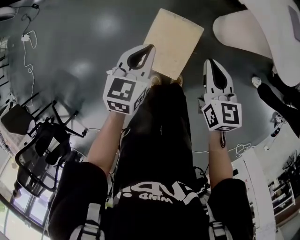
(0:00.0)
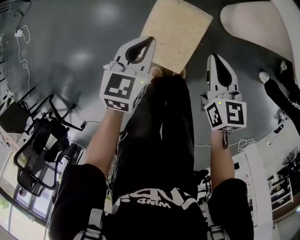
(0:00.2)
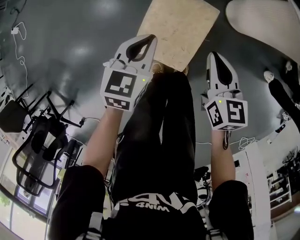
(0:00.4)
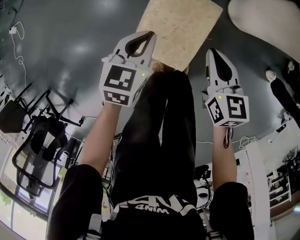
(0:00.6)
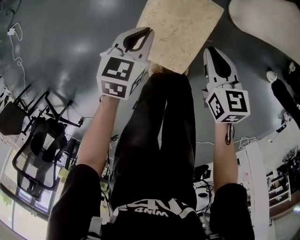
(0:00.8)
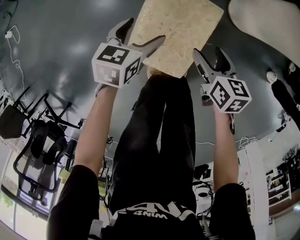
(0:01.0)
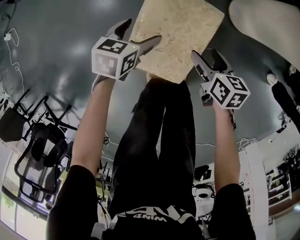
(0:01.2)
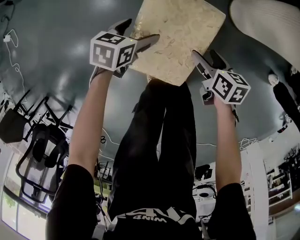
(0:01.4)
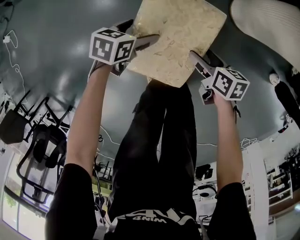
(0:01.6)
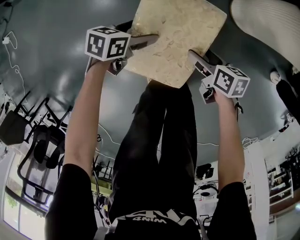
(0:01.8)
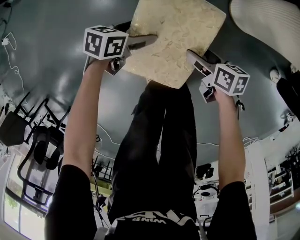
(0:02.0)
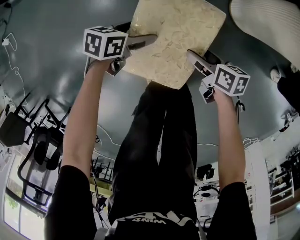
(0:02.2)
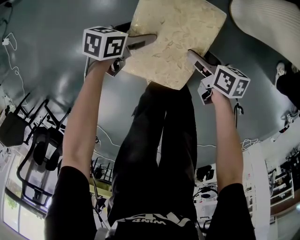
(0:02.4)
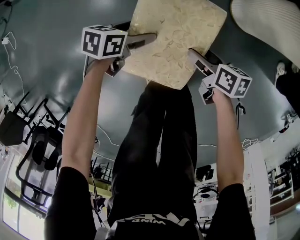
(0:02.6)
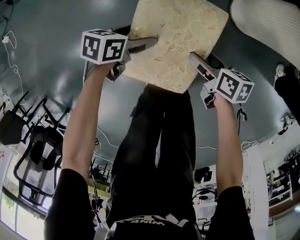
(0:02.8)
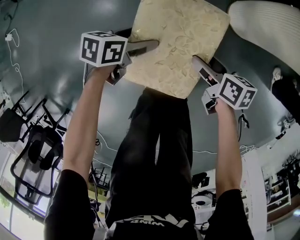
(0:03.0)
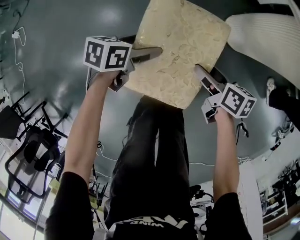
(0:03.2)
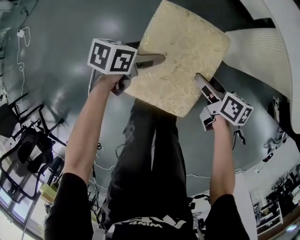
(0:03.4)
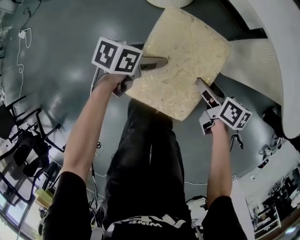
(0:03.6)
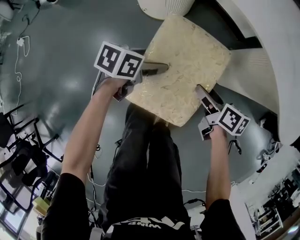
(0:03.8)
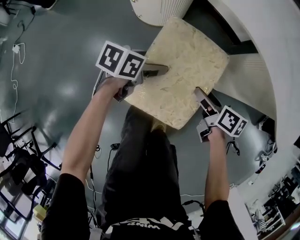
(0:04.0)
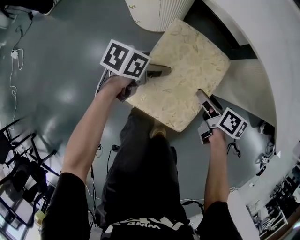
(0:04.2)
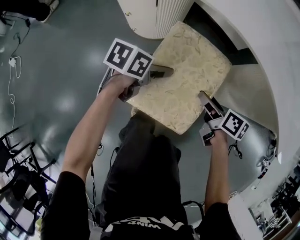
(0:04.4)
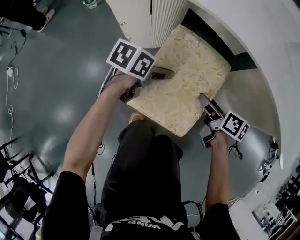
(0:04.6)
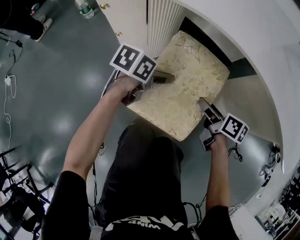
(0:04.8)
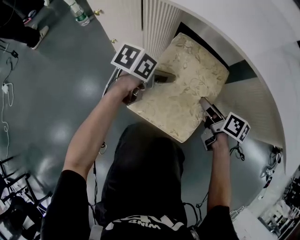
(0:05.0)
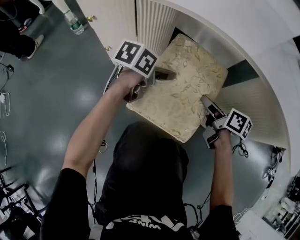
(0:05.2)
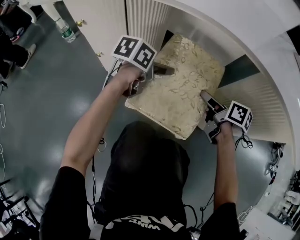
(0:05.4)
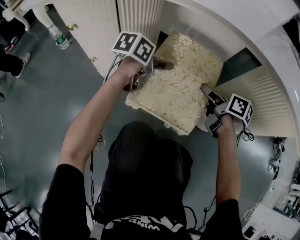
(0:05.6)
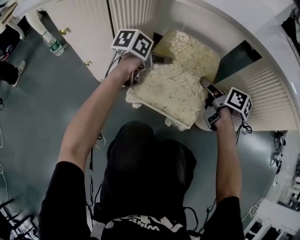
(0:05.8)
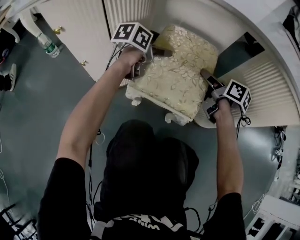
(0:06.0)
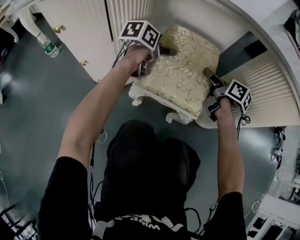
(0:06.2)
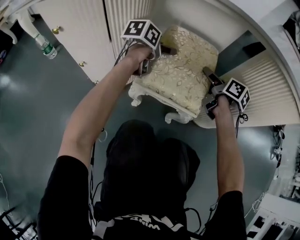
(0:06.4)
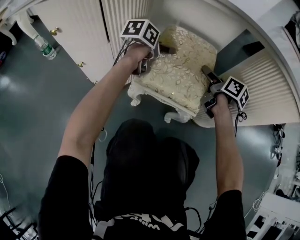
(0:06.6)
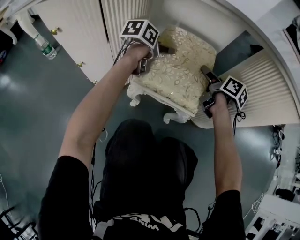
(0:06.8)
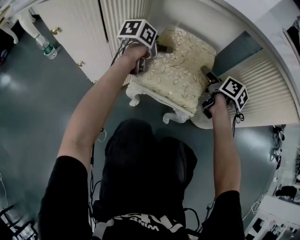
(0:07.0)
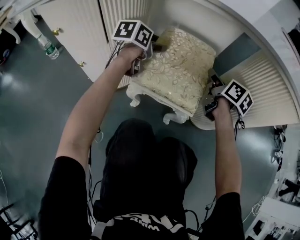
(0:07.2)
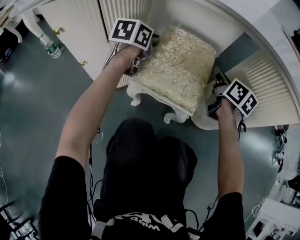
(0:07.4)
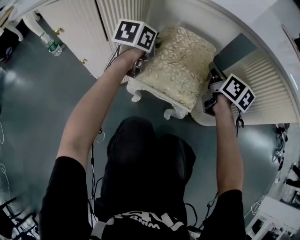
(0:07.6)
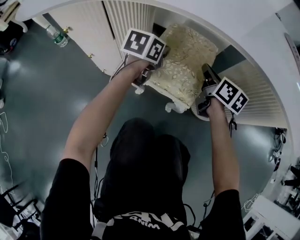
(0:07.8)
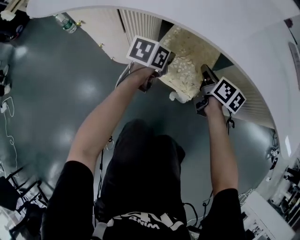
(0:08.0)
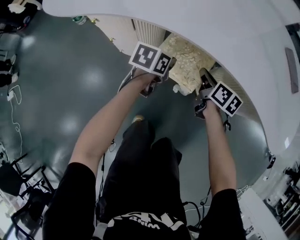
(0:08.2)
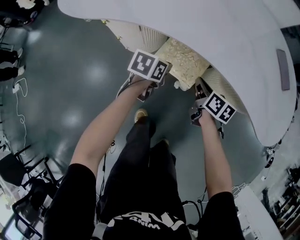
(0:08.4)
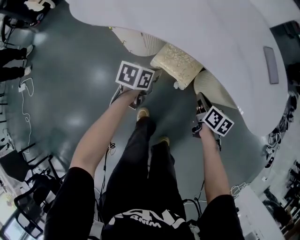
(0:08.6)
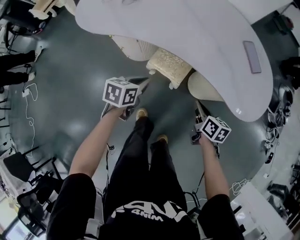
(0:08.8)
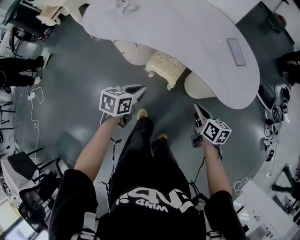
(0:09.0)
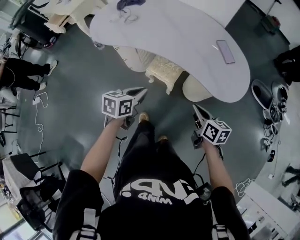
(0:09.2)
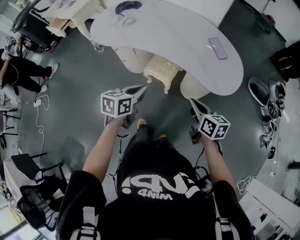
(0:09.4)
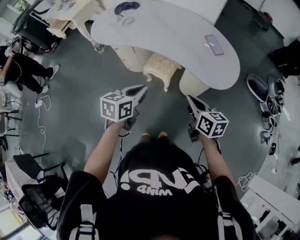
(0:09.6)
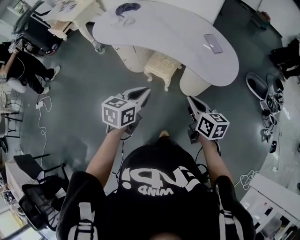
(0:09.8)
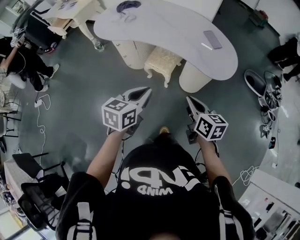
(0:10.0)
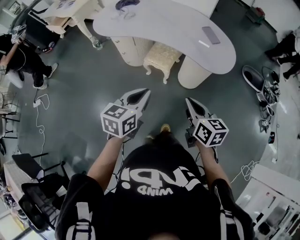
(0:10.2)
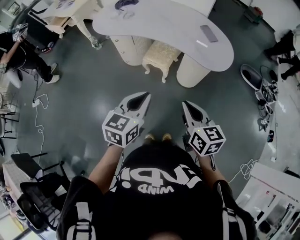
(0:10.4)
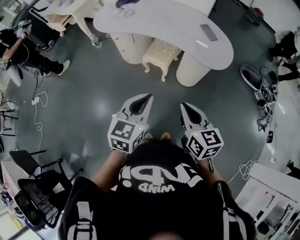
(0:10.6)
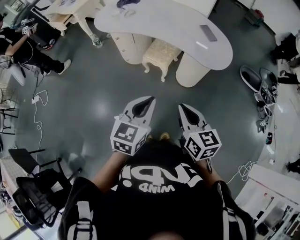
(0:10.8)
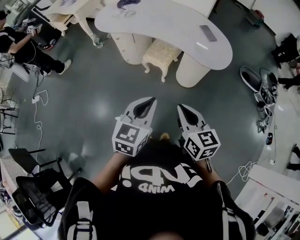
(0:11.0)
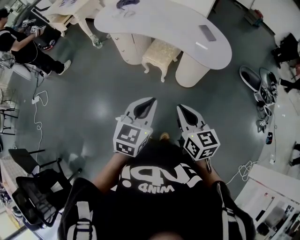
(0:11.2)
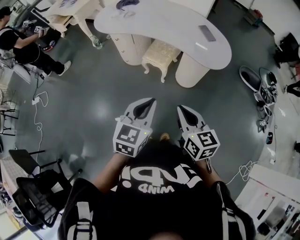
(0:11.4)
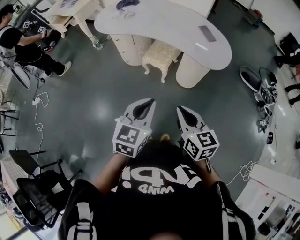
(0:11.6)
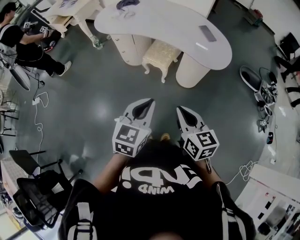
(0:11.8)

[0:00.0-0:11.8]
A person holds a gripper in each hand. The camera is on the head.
0:00.0 to 0:01.4: Both grippers travel together downward, roughly 35 cm. The right gripper changes its angle by approximately 40 degrees, and opens its fingers. The left gripper swivels some 30 degrees, and opens its fingers.
0:01.4 to 0:03.0: The grippers move only a little.
0:03.0 to 0:04.4: The left gripper changes place by approximately 30 cm. Meanwhile the right gripper changes place by some 25 cm.
0:04.4 to 0:06.0: The right gripper rotates roughly 20 degrees.
0:06.0 to 0:07.4: Both grippers move upward, about 5 cm. The right gripper rotates roughly 30 degrees, and closes up, while the left gripper closes its fingers.
0:07.4 to 0:08.8: Both grippers move backward and upward, approximately 40 cm. The right gripper swivels about 30 degrees.
0:08.8 to 0:10.4: Both grippers travel together backward and upward, approximately 50 cm. The left gripper swivels some 30 degrees, while the right gripper rotates roughly 30 degrees.
0:10.4 to 0:11.8: The left gripper ends up about 5 cm from where it was.

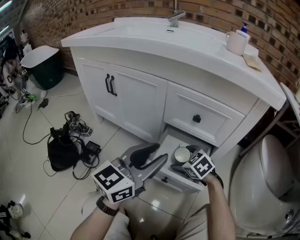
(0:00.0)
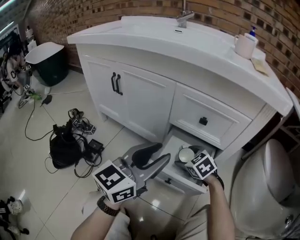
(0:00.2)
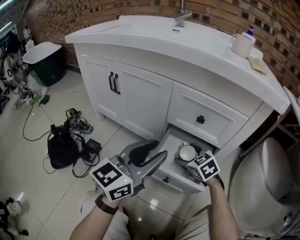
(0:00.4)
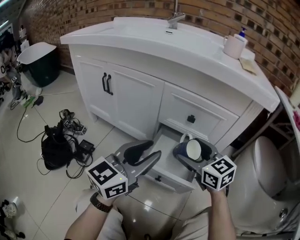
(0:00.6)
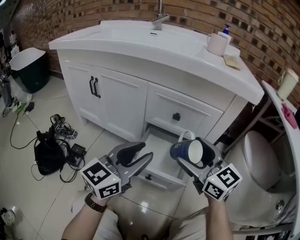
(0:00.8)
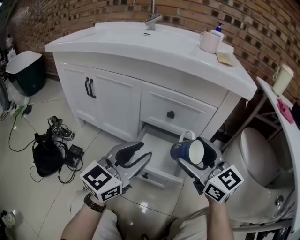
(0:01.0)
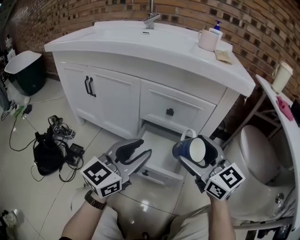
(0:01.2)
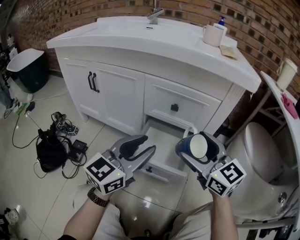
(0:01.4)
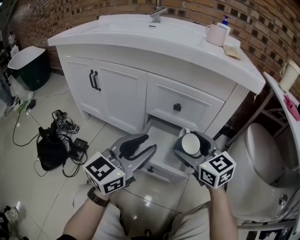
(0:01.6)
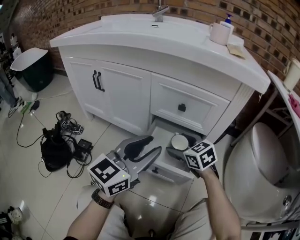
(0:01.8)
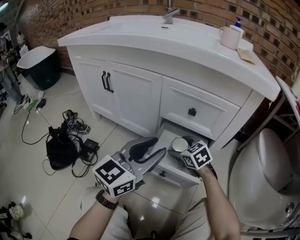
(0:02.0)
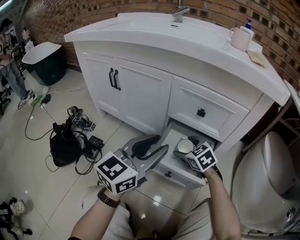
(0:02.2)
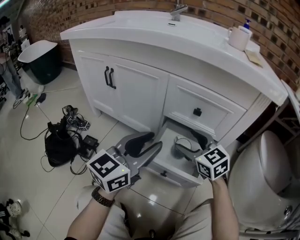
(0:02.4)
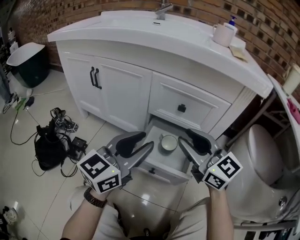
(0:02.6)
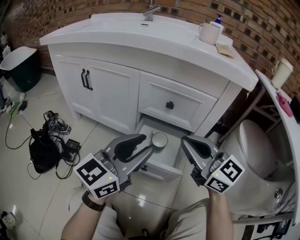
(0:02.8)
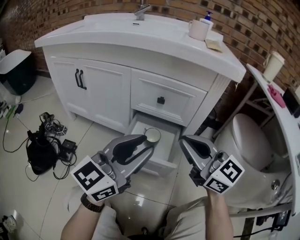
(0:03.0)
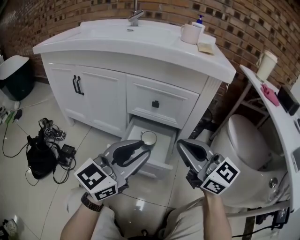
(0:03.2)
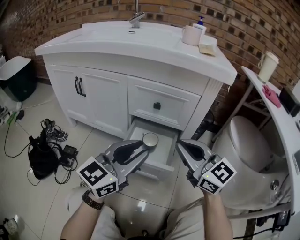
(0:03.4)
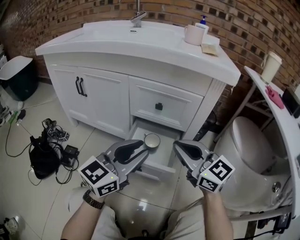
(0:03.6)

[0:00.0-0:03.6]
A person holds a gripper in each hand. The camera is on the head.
0:00.0 to 0:01.8: The right gripper travels upward and back again, roughly 25 cm each way.
0:01.8 to 0:03.6: The right gripper travels upward and backward by about 20 cm, tilts its fingers some 30 degrees upward, and closes.

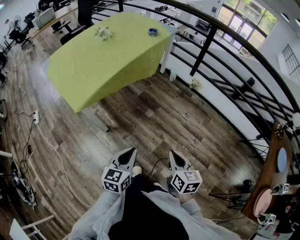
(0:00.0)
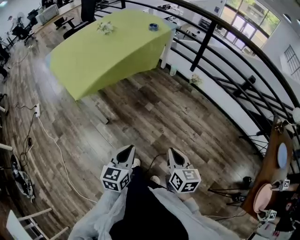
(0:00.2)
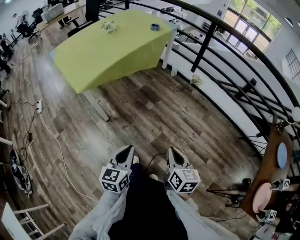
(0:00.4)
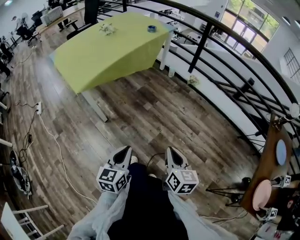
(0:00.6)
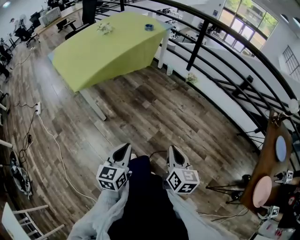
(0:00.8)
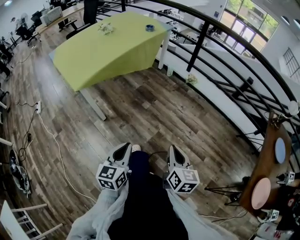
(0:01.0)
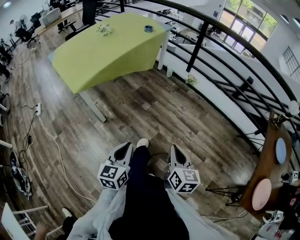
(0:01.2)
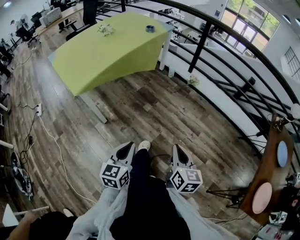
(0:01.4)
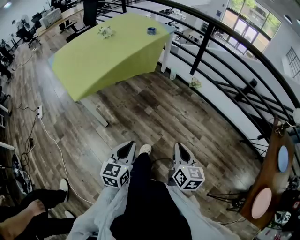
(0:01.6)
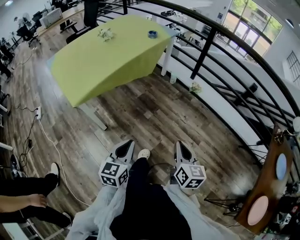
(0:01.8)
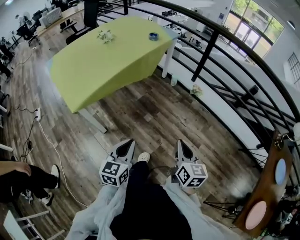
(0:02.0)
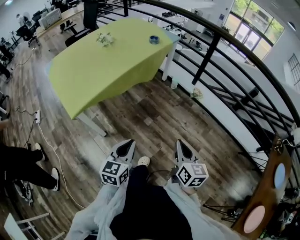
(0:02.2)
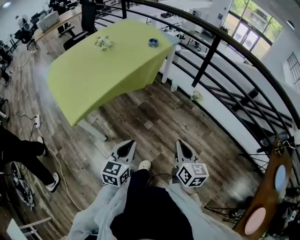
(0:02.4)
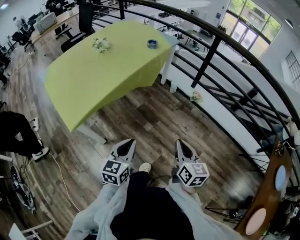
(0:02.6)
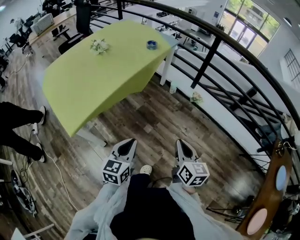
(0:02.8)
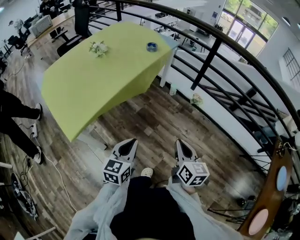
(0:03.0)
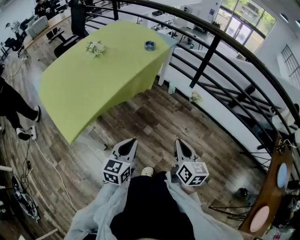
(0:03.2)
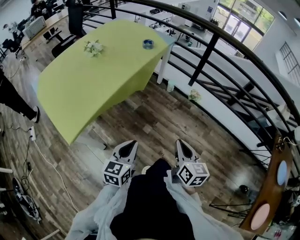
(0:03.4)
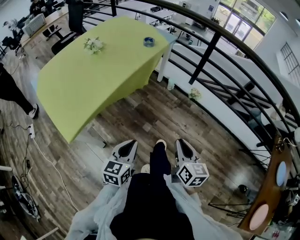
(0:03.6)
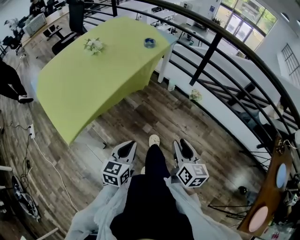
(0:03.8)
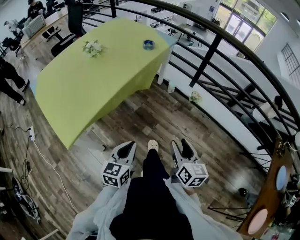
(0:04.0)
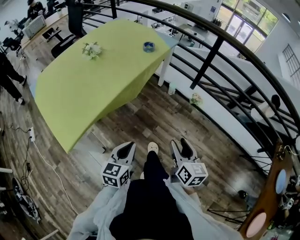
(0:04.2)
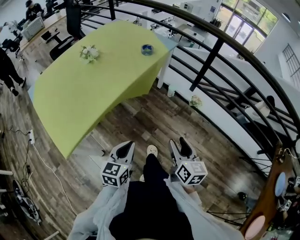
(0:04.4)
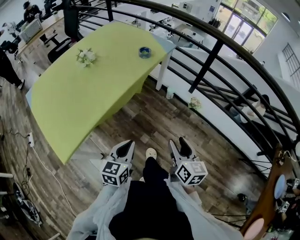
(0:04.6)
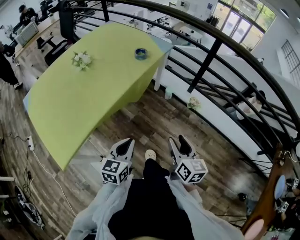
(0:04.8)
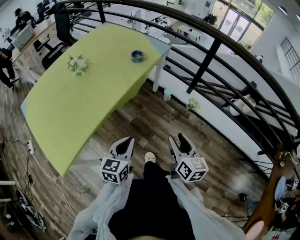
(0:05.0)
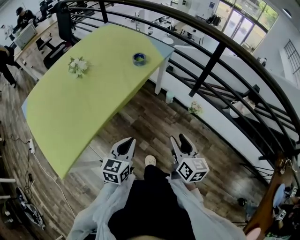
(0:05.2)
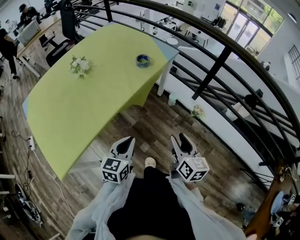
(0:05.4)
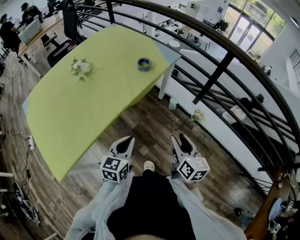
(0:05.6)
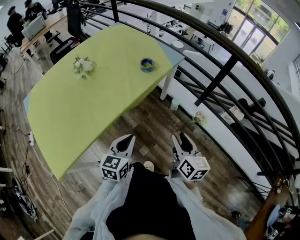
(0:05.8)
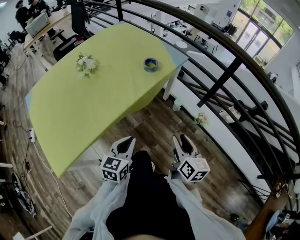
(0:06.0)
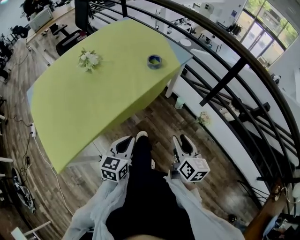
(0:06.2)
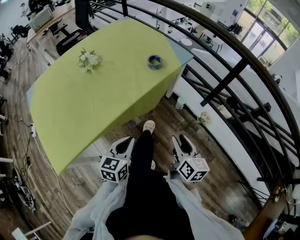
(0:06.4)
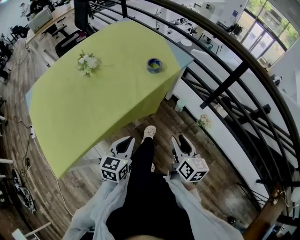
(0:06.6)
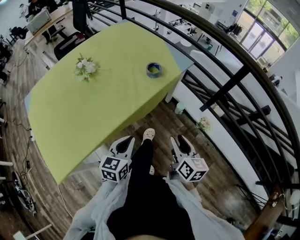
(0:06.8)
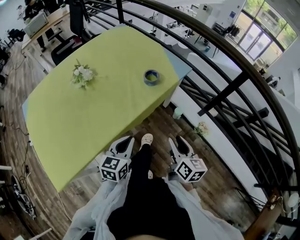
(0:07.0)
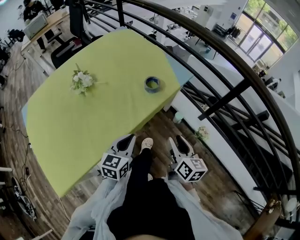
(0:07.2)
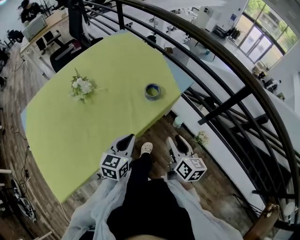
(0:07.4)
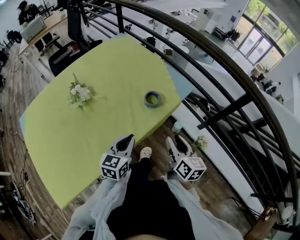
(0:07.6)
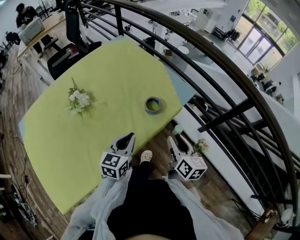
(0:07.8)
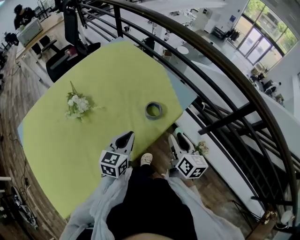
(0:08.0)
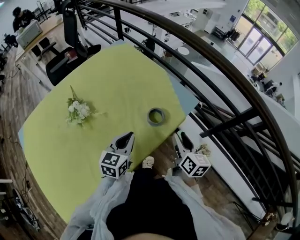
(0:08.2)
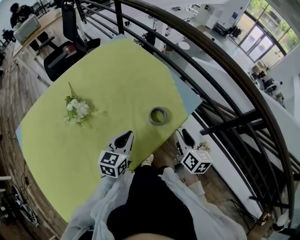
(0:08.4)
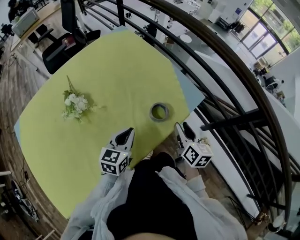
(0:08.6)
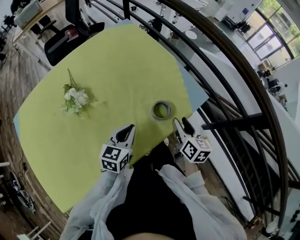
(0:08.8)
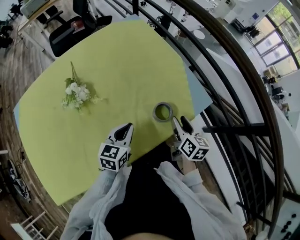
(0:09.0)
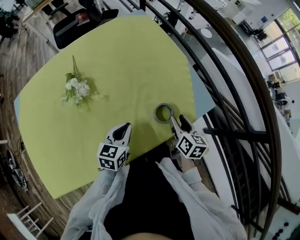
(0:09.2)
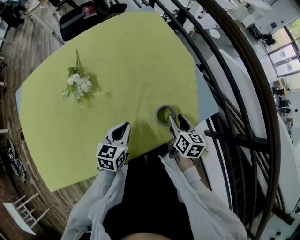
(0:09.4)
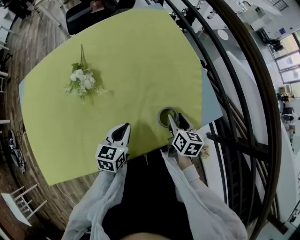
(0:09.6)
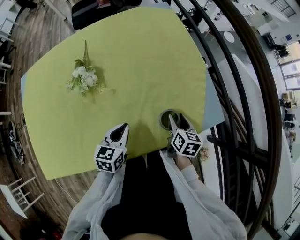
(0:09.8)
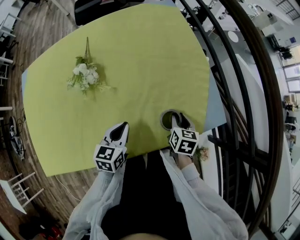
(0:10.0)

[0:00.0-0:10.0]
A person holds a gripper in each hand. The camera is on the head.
0:00.0 to 0:01.4: The two grippers go approximately 10 cm backward and to the right.
0:01.4 to 0:02.8: Both grippers move forward, roughly 25 cm.
0:02.8 to 0:04.2: Both grippers travel together forward, roughly 10 cm. The right gripper opens.
0:04.2 to 0:05.8: The grippers both shift forward by approximately 25 cm.
0:05.8 to 0:07.2: Both grippers travel together forward, roughly 15 cm.
0:07.2 to 0:08.6: Both grippers travel together forward, approximately 20 cm.
0:08.6 to 0:10.0: The left gripper ends up some 5 cm from where it was, and swivels some 30 degrees. Meanwhile the right gripper shifts roughly 15 cm forward and downward, and rotates roughly 30 degrees.
